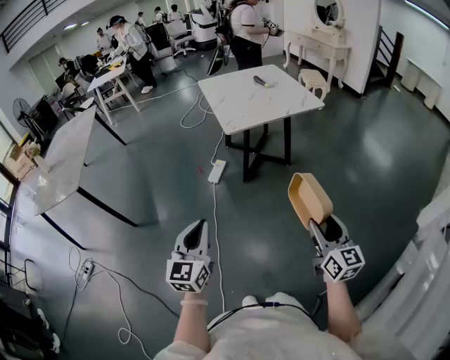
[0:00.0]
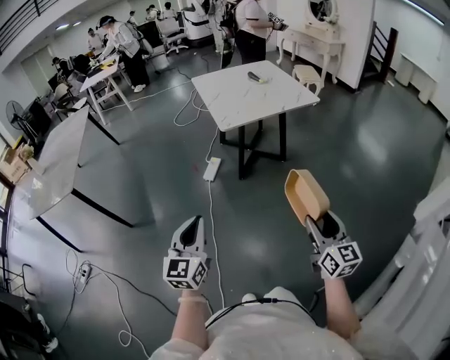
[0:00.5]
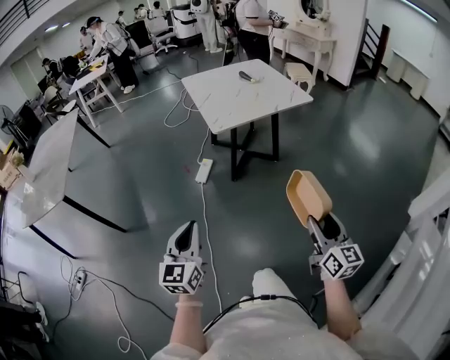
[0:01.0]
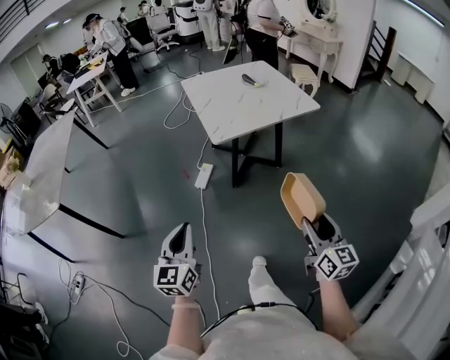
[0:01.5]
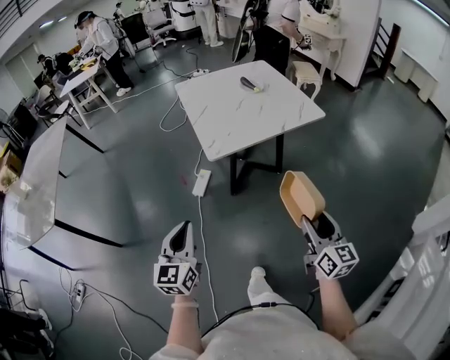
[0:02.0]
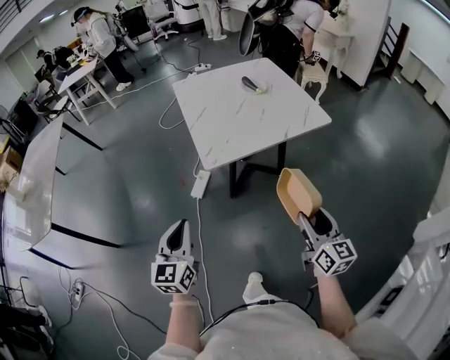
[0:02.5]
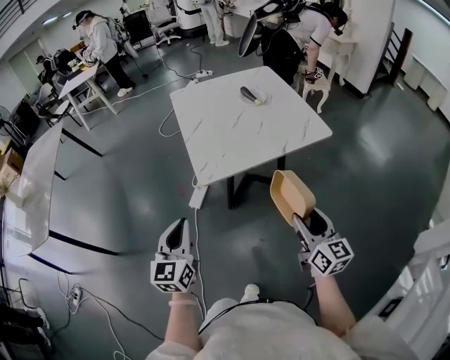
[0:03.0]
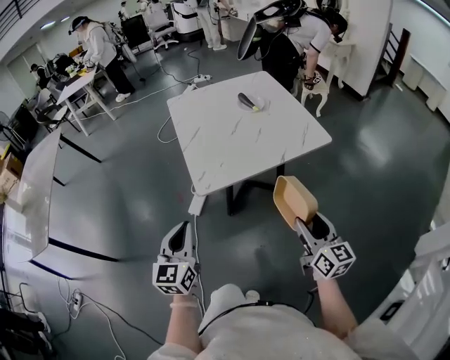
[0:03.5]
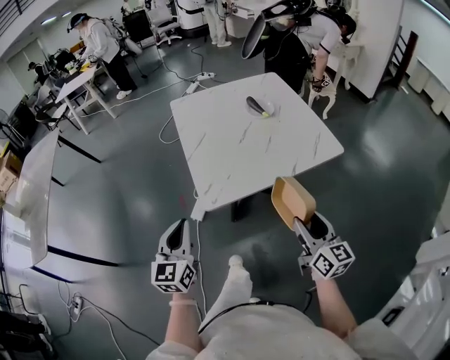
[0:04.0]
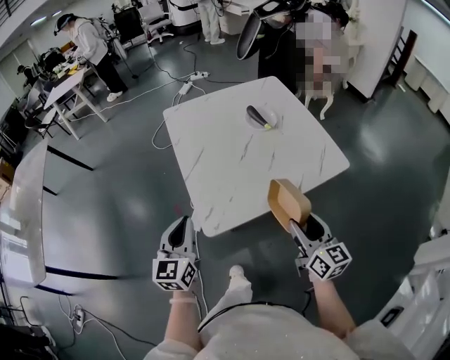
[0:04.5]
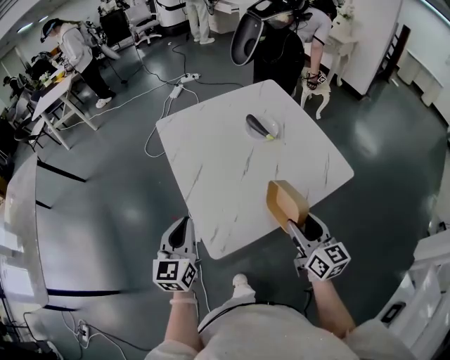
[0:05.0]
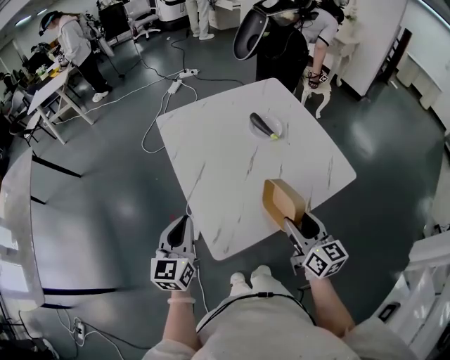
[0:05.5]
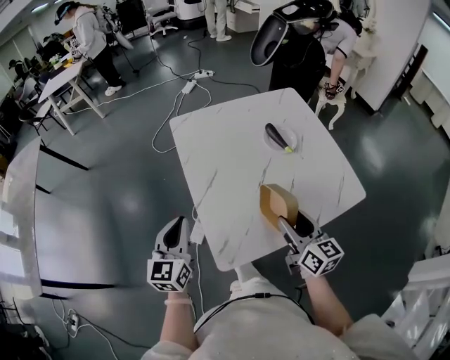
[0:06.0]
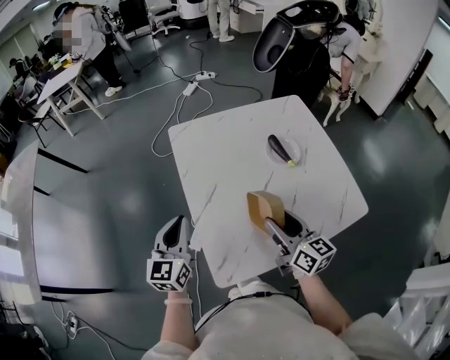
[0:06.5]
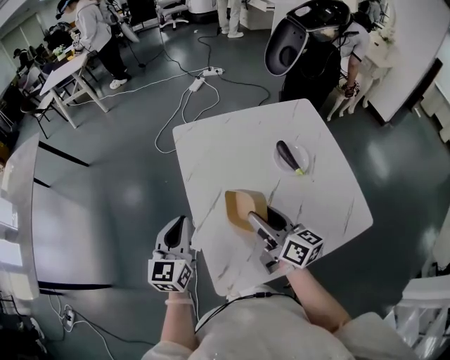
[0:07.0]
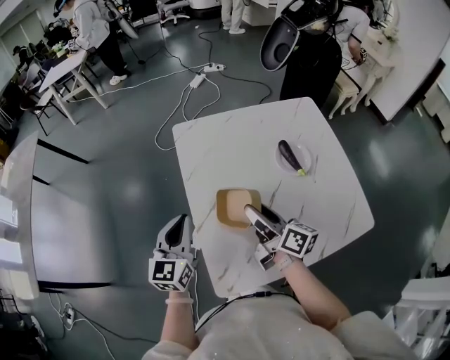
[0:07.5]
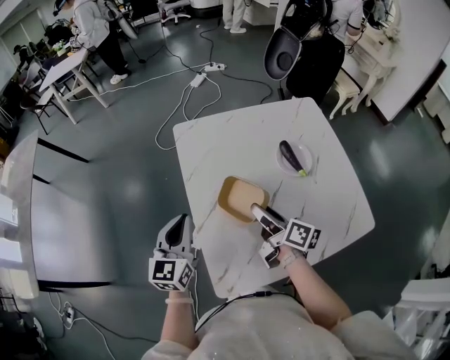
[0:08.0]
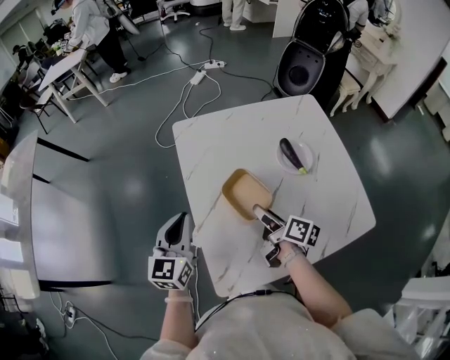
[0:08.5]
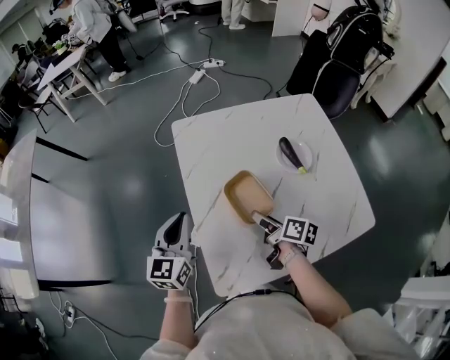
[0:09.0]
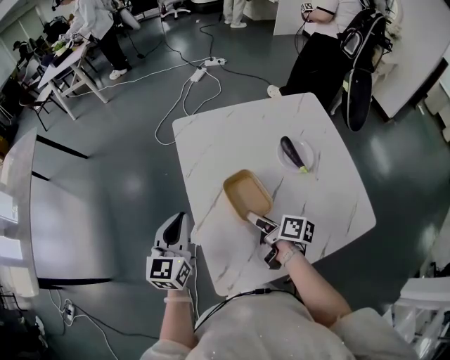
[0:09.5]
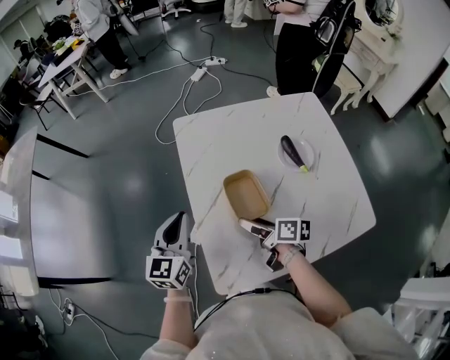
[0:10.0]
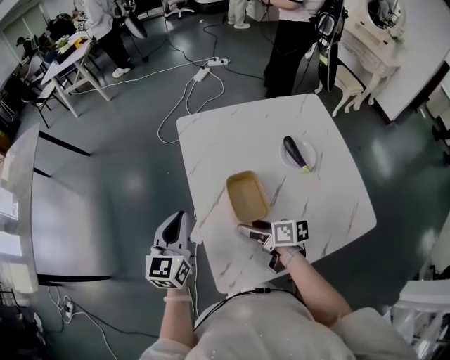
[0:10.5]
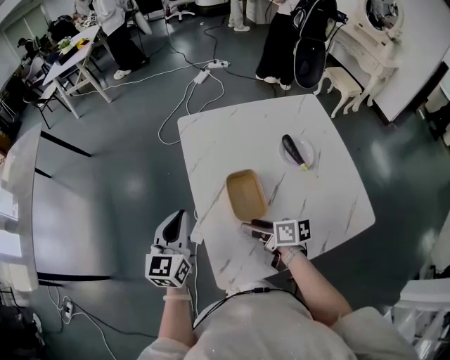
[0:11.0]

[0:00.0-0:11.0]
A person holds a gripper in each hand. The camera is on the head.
0:00.0 to 0:02.0: Both grippers travel together forward, approximately 20 cm.
0:02.0 to 0:03.5: The right gripper goes about 15 cm forward. The left gripper travels forward and to the right by approximately 15 cm.
0:03.5 to 0:05.5: Both grippers move forward, about 25 cm.
0:05.5 to 0:07.5: The left gripper goes approximately 10 cm forward. The right gripper shifts approximately 25 cm forward and to the left, and swivels some 40 degrees.
0:07.5 to 0:09.0: The right gripper is displaced downward by roughly 10 cm, and changes its angle by some 30 degrees.
0:09.0 to 0:11.0: The right gripper goes approximately 5 cm to the left, and swivels approximately 20 degrees.

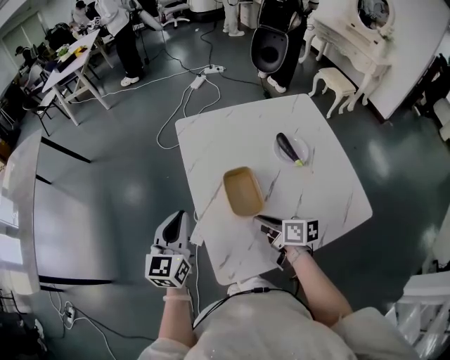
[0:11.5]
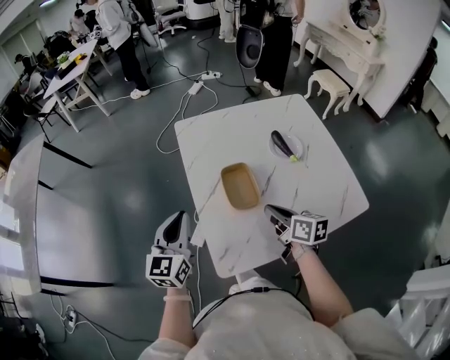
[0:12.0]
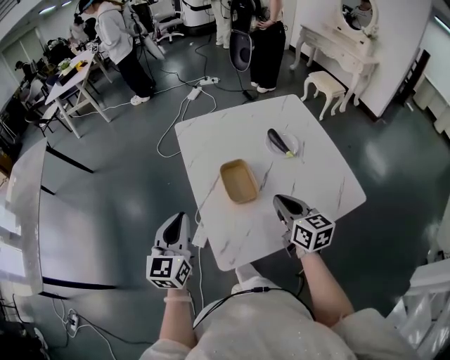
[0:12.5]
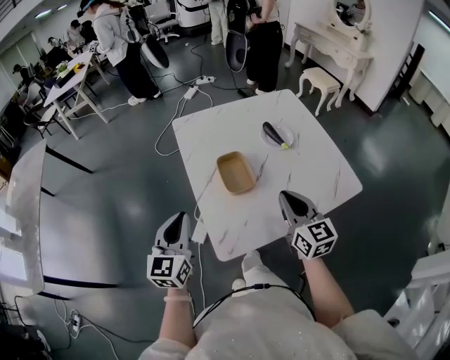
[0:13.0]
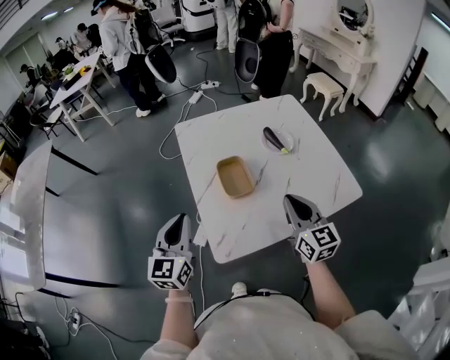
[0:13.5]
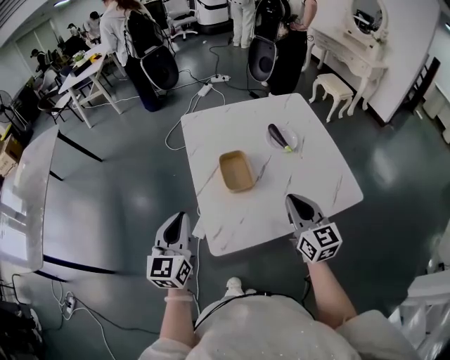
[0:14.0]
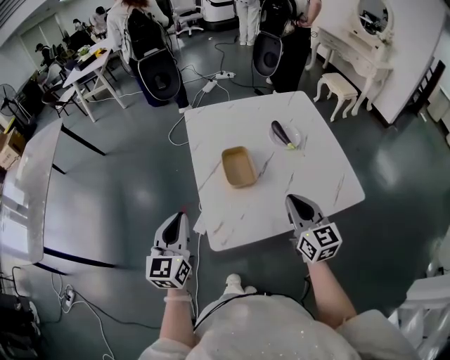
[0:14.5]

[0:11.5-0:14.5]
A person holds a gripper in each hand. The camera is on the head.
0:11.5 to 0:13.0: The left gripper moves backward, about 10 cm. The right gripper shifts roughly 15 cm upward, backward and to the right, and changes its angle by some 50 degrees.
0:13.0 to 0:14.5: The grippers make only small movements.

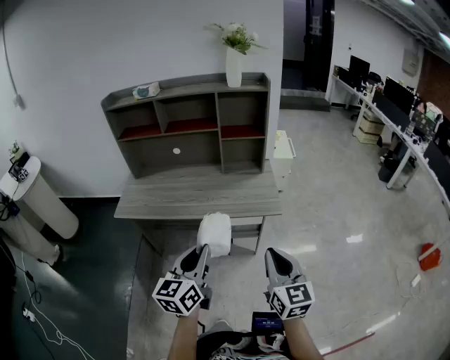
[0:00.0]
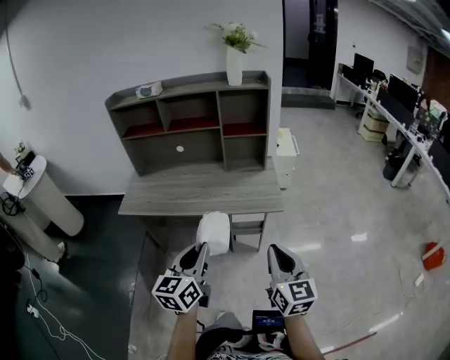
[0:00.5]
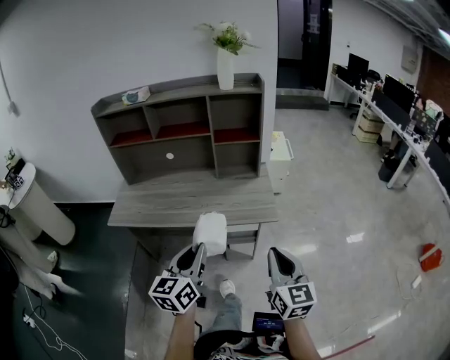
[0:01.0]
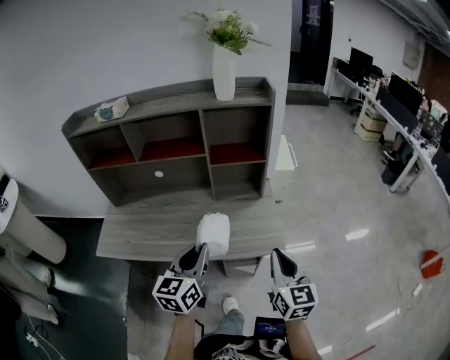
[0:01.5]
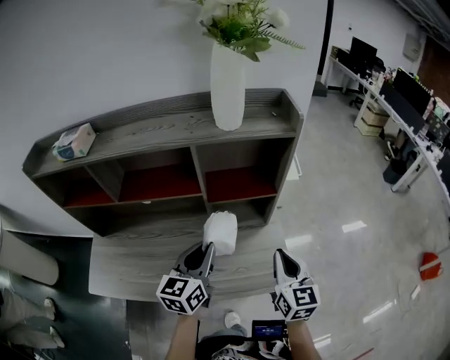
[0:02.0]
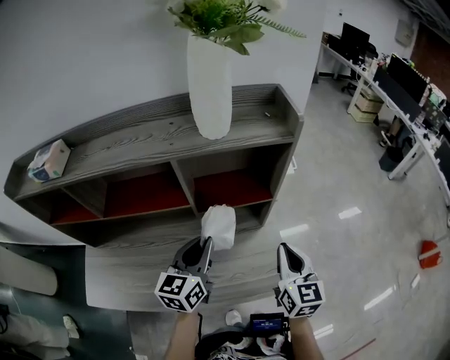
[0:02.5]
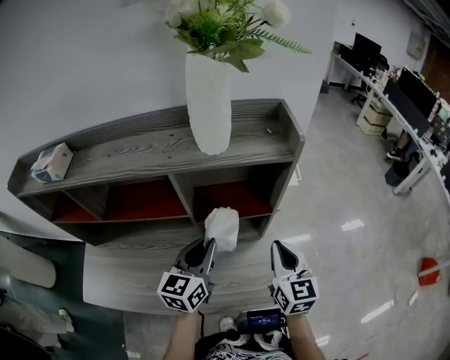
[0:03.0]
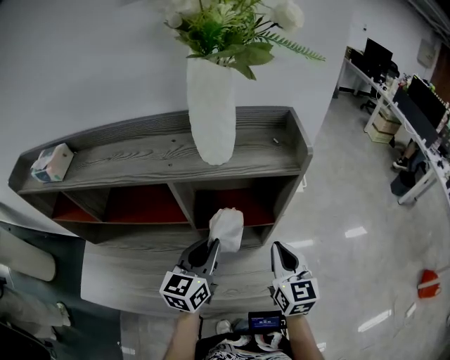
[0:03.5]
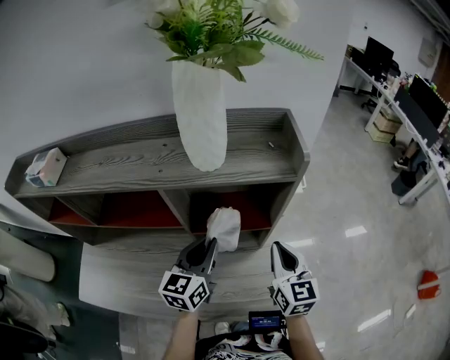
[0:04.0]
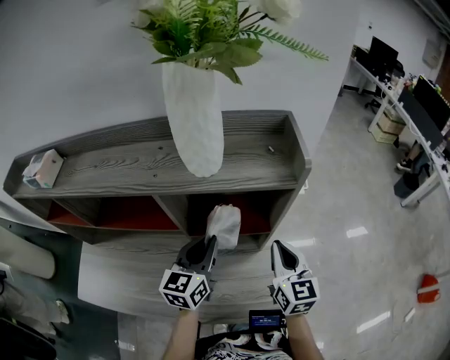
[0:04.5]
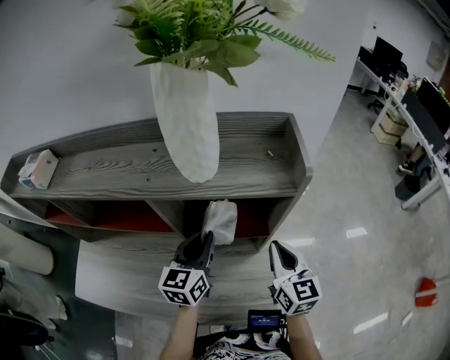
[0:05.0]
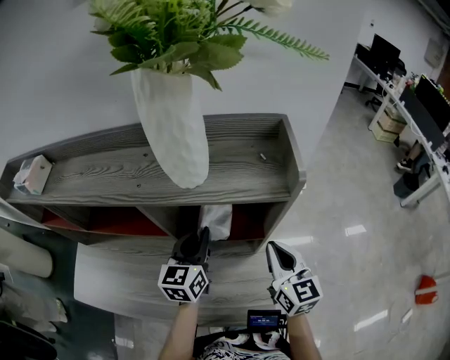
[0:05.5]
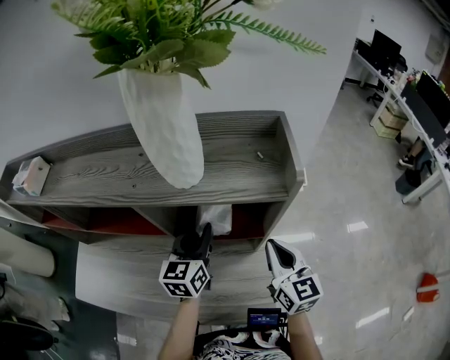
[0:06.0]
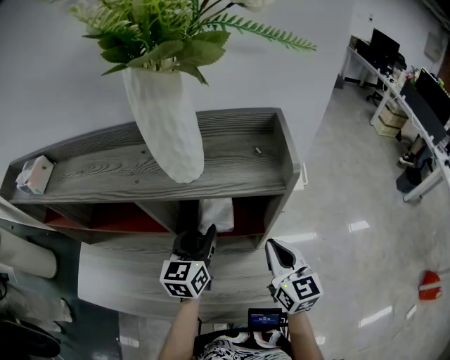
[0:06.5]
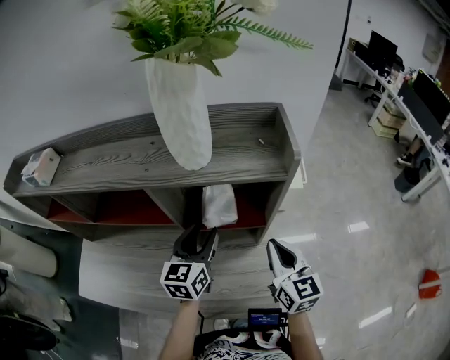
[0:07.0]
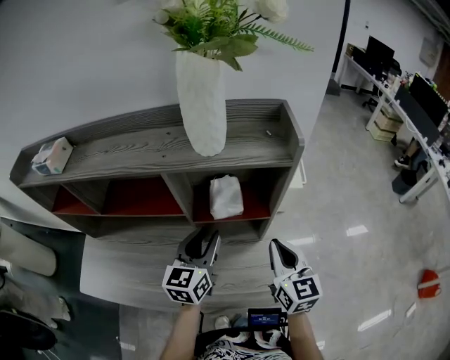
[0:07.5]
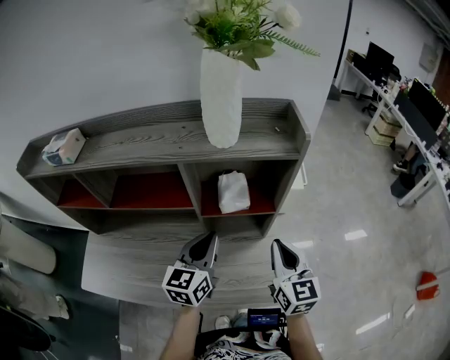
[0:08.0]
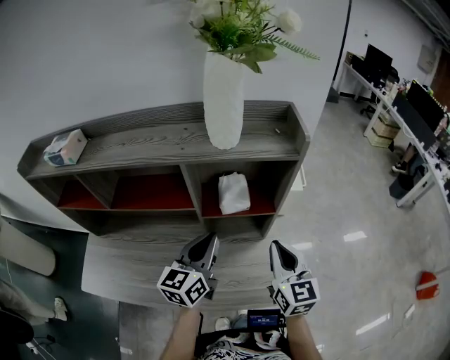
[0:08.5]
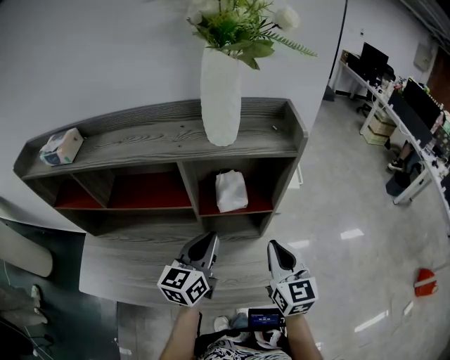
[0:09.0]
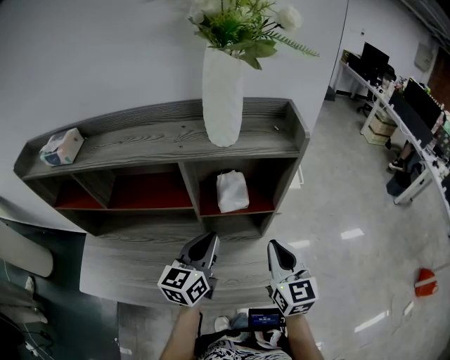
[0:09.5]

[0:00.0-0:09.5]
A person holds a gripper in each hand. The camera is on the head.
0:00.0 to 0:02.0: The two grippers travel together, forward, roughly 50 cm.
0:02.0 to 0:04.0: The grippers both shift forward by about 15 cm.
0:04.0 to 0:05.5: The left gripper moves forward, about 5 cm.
0:05.5 to 0:07.5: The two grippers go some 5 cm backward. The left gripper opens.
0:07.5 to 0:09.5: The left gripper closes up.

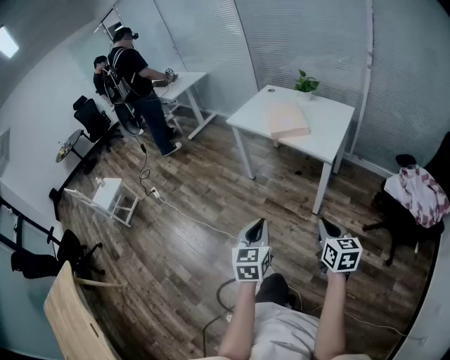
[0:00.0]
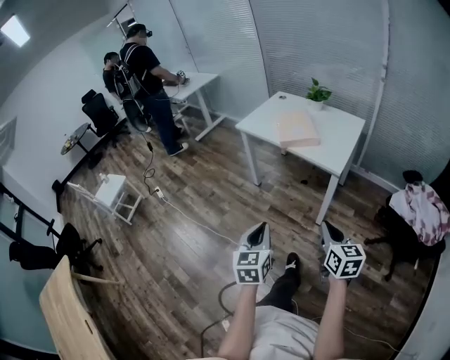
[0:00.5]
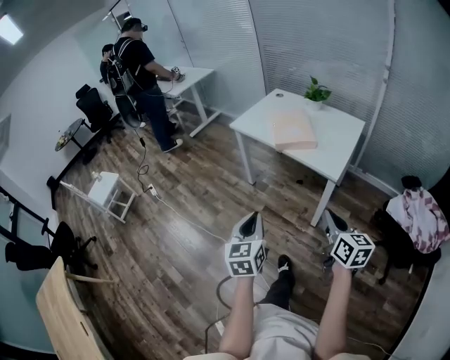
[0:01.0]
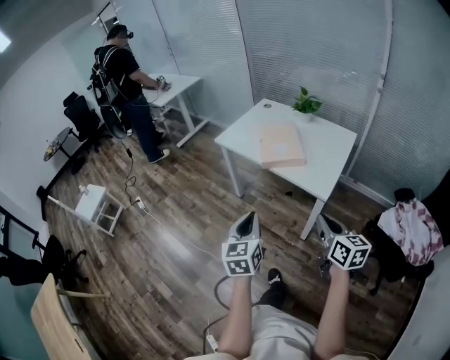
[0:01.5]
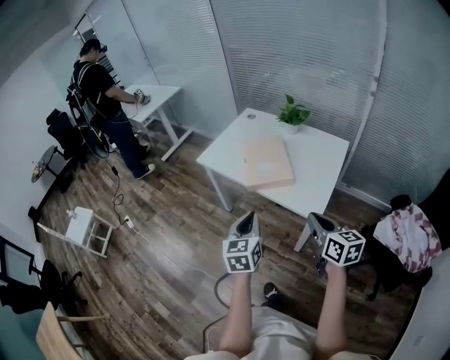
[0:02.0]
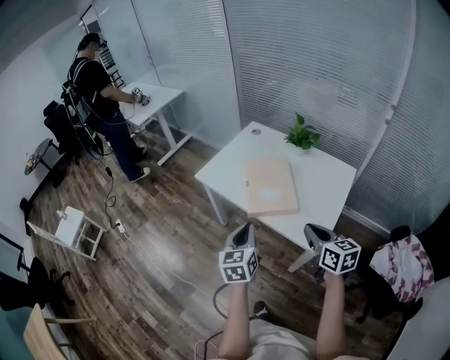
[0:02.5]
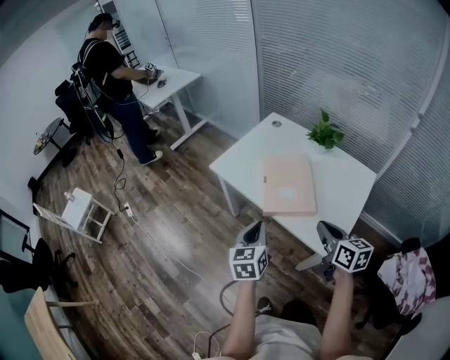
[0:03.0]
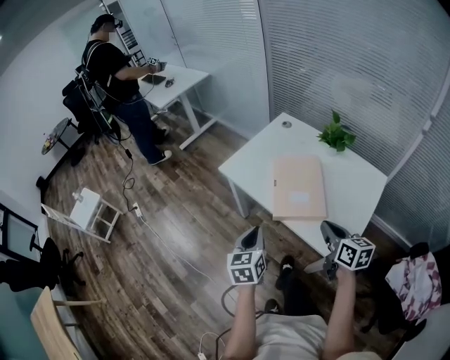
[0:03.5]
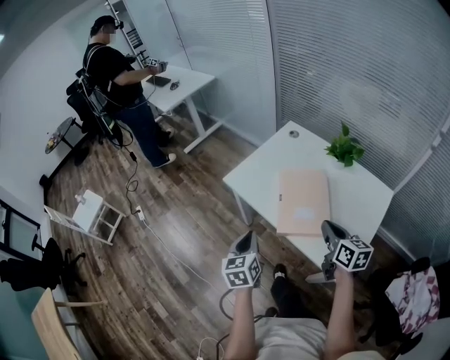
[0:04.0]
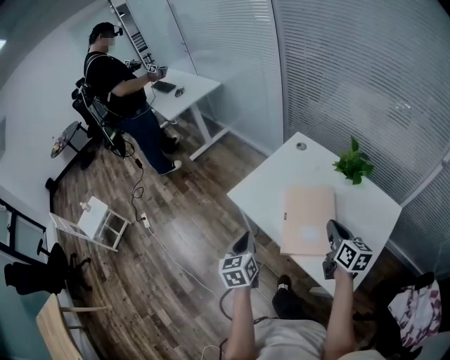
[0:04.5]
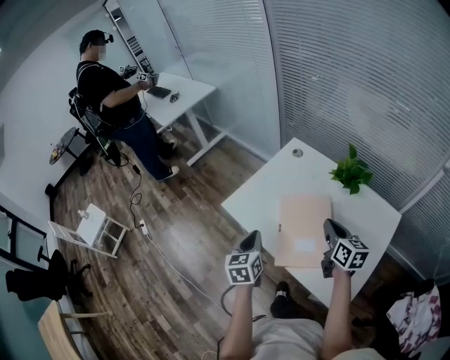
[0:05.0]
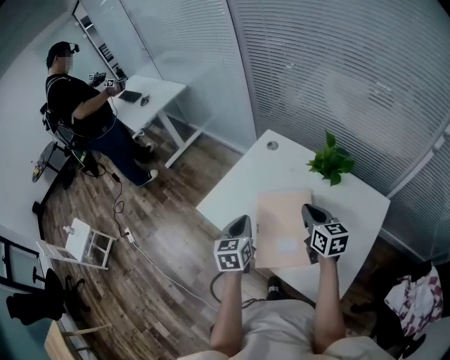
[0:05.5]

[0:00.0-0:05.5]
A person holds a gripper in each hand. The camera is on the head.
0:00.0 to 0:02.0: The two grippers go about 35 cm forward.
0:02.0 to 0:03.5: The left gripper heads forward and downward, covering some 20 cm. Meanwhile the right gripper moves forward, approximately 20 cm.
0:03.5 to 0:05.5: The two grippers go some 25 cm forward.
